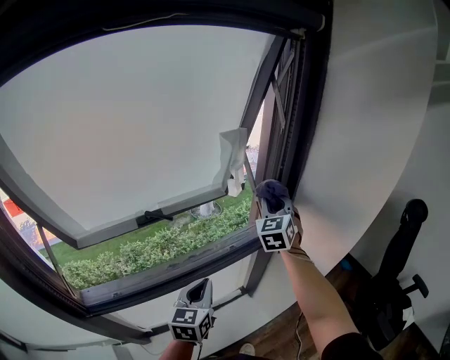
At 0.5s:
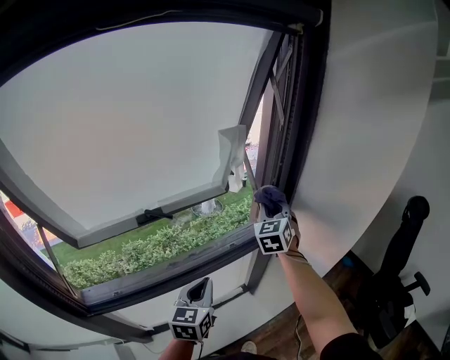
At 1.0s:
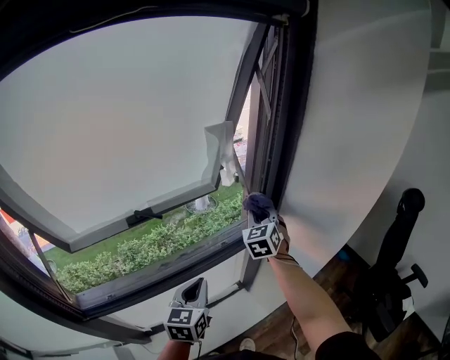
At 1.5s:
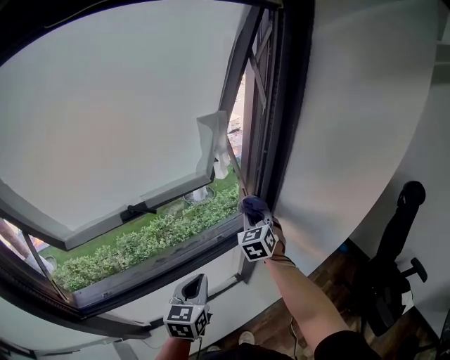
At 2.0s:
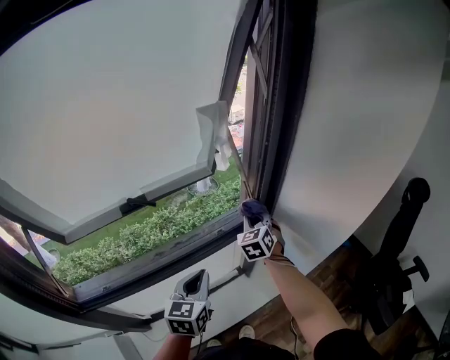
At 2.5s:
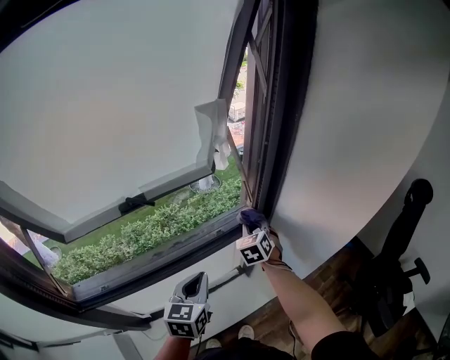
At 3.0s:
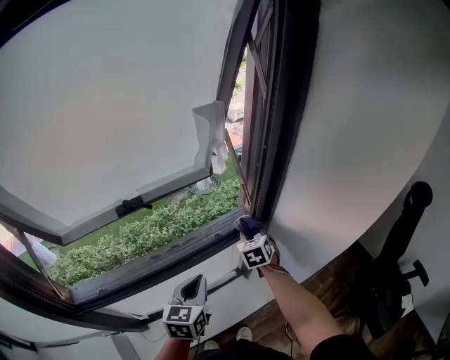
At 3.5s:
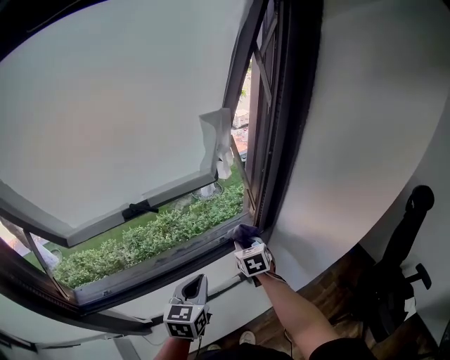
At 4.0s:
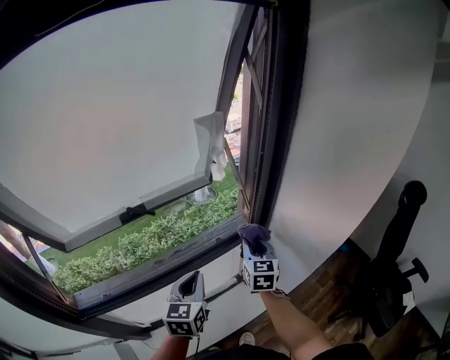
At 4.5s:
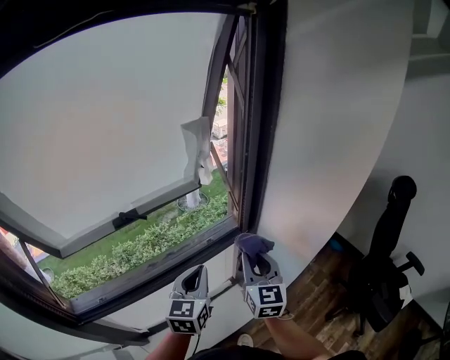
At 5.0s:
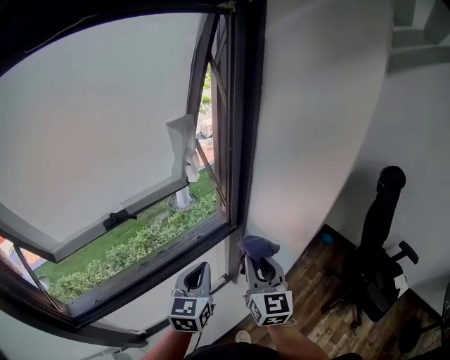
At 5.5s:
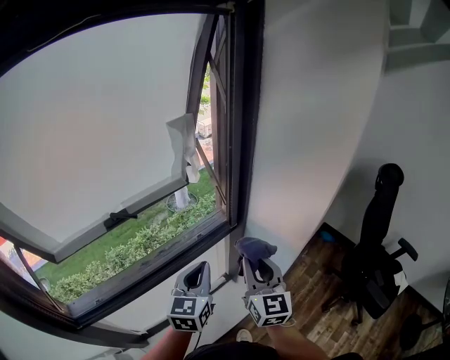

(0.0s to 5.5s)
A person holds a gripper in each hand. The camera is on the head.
0.0s - 2.0s: The right gripper goes about 20 cm downward.
2.0s - 3.5s: The right gripper heads downward, covering roughly 5 cm, and changes its angle by approximately 20 degrees.
3.5s - 5.5s: The right gripper shifts some 25 cm backward, upward and to the right, and tips its fingers upward by approximately 40 degrees, while the left gripper heads to the right and upward, covering roughly 10 cm.

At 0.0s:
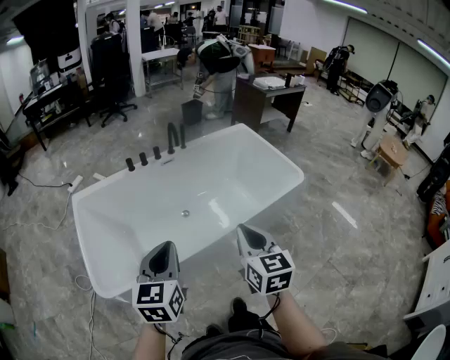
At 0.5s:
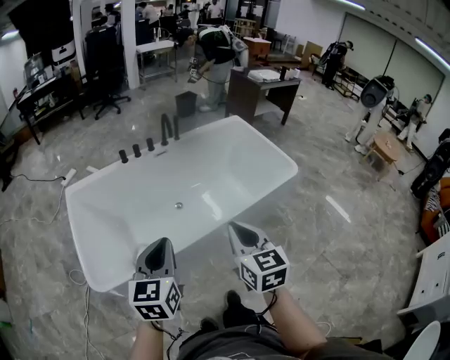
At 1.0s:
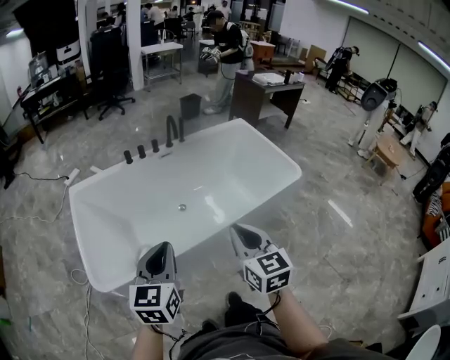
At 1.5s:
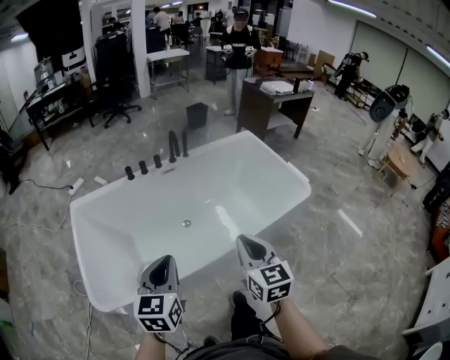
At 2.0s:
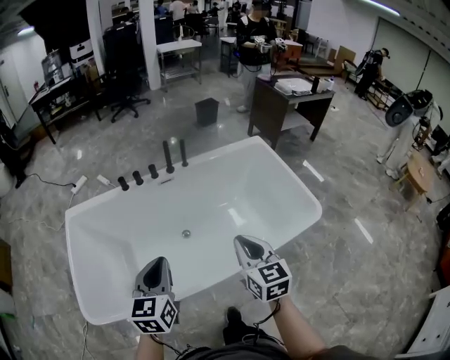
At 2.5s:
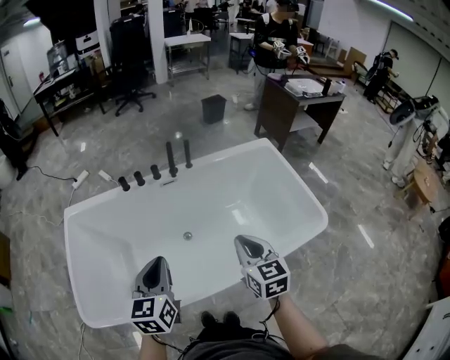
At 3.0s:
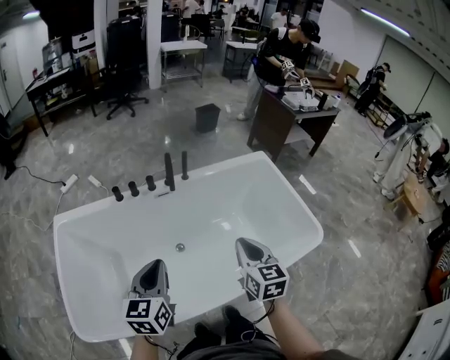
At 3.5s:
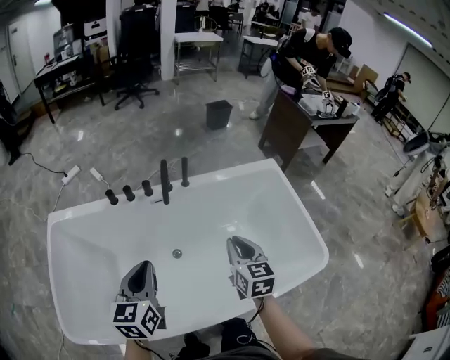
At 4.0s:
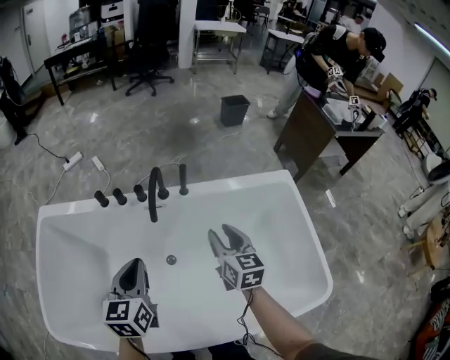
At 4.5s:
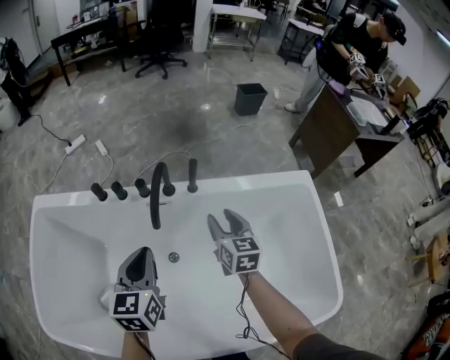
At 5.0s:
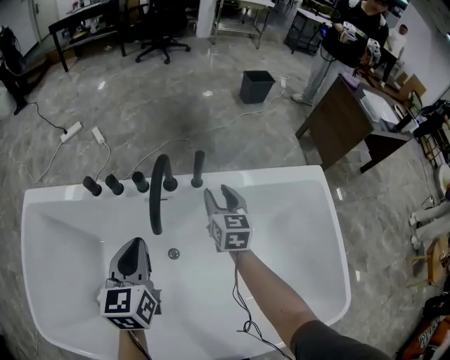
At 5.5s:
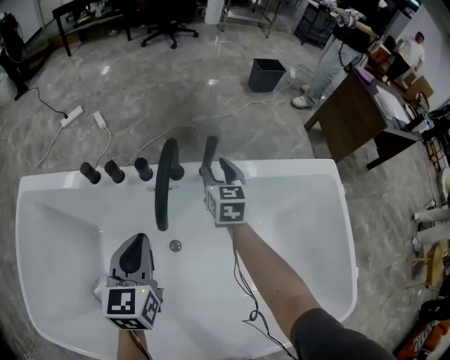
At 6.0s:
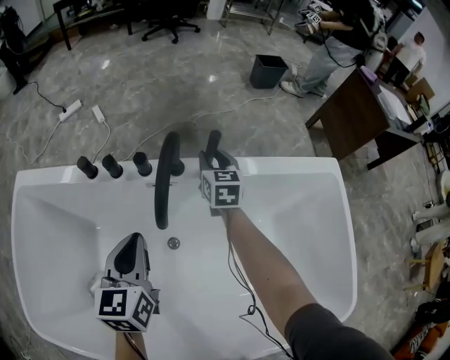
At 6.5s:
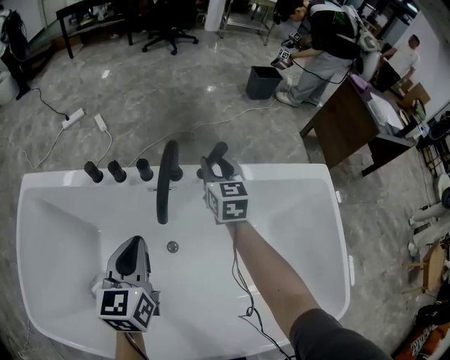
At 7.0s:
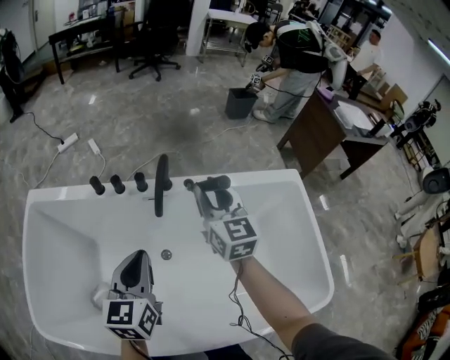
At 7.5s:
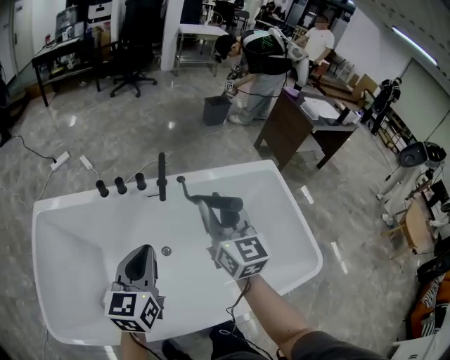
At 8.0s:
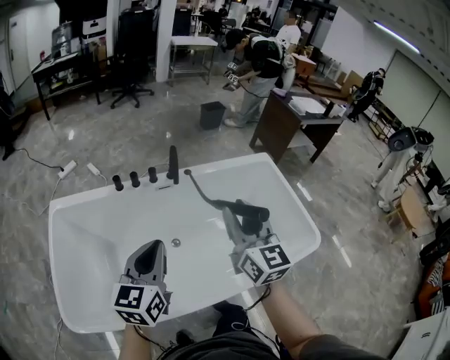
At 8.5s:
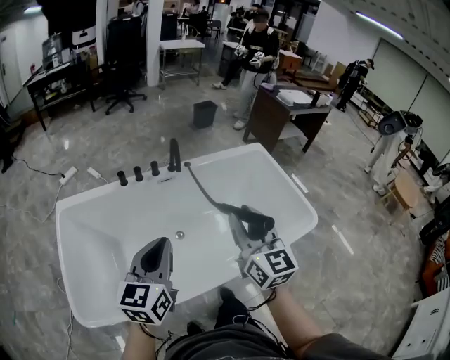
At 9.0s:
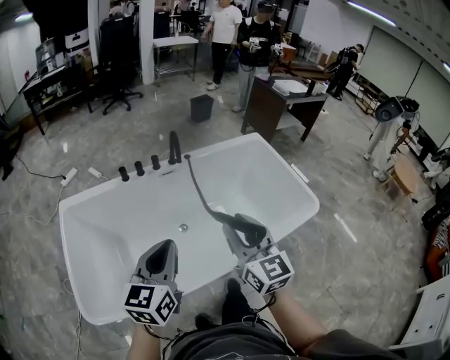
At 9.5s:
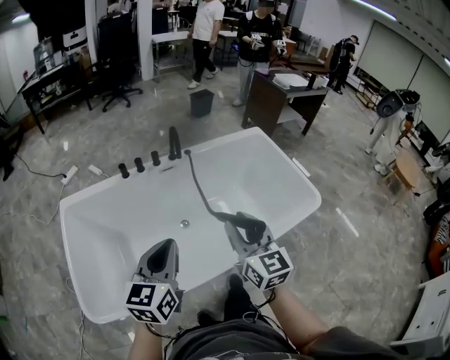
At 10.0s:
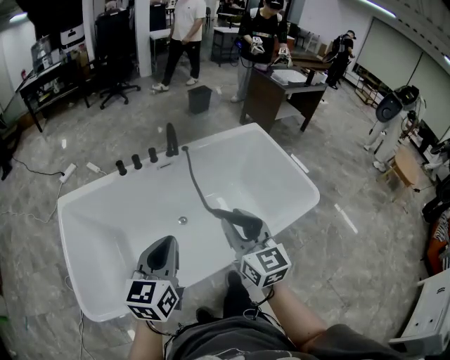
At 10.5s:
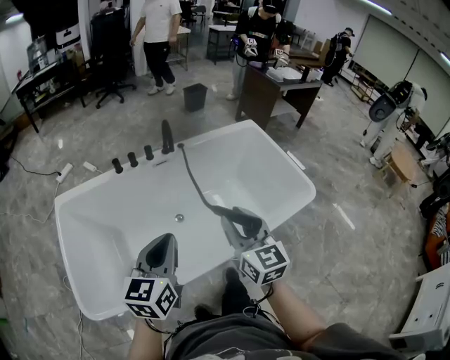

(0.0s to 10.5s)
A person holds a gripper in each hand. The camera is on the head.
0.0s - 2.0s: The grippers both shift forward by approximately 20 cm.
2.0s - 4.0s: Both grippers travel together forward, some 35 cm. The right gripper opens.
4.0s - 6.5s: The right gripper travels forward and downward by roughly 25 cm. The left gripper goes about 15 cm downward and forward.
6.5s - 8.5s: The right gripper is displaced backward and upward by roughly 60 cm, and rotates approximately 30 degrees; the left gripper travels backward and upward by some 40 cm, and turns by some 30 degrees.
8.5s - 10.5s: The left gripper ends up some 5 cm from where it was. Meanwhile the right gripper goes about 10 cm downward and backward.

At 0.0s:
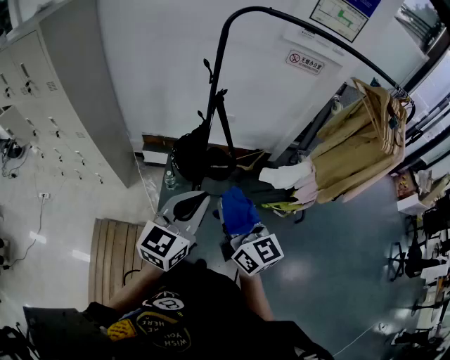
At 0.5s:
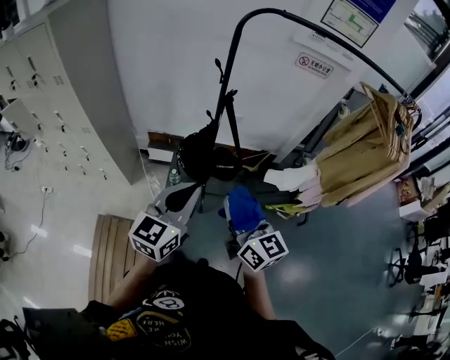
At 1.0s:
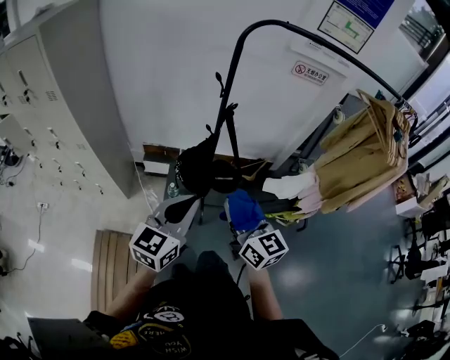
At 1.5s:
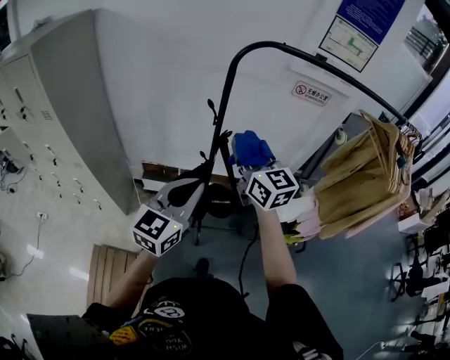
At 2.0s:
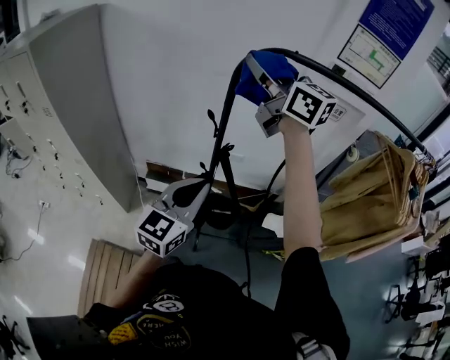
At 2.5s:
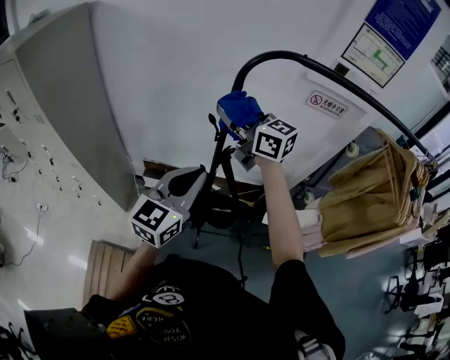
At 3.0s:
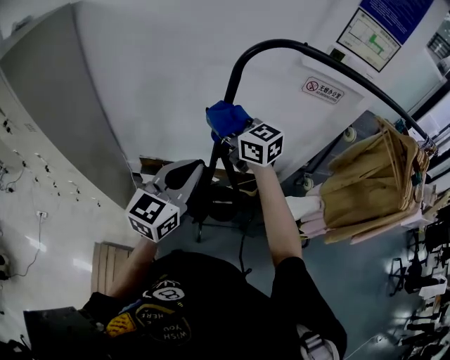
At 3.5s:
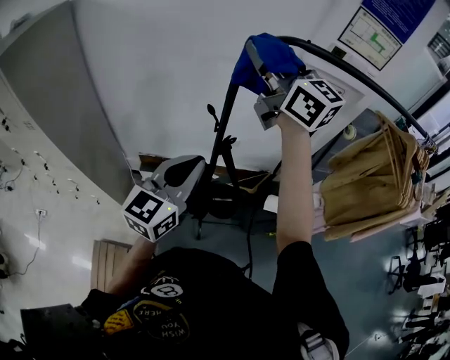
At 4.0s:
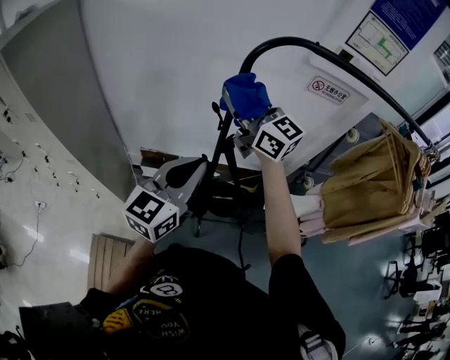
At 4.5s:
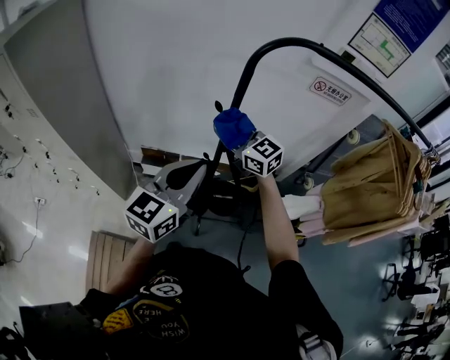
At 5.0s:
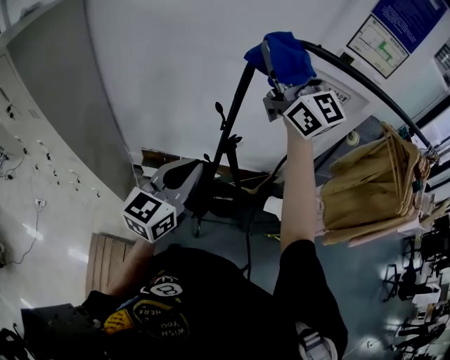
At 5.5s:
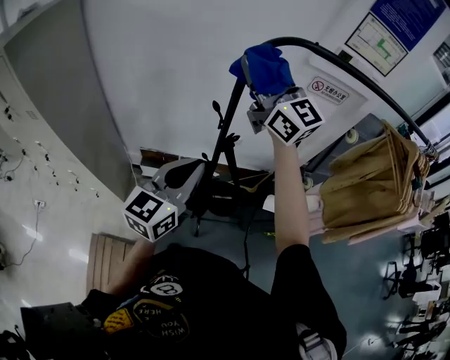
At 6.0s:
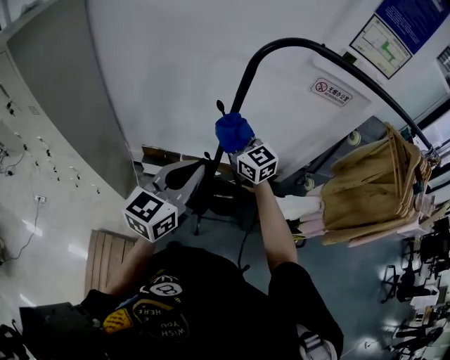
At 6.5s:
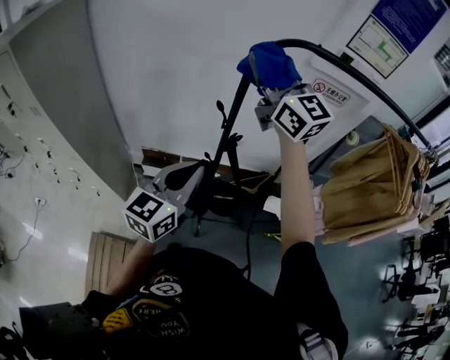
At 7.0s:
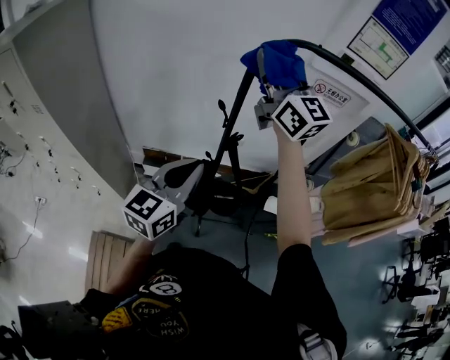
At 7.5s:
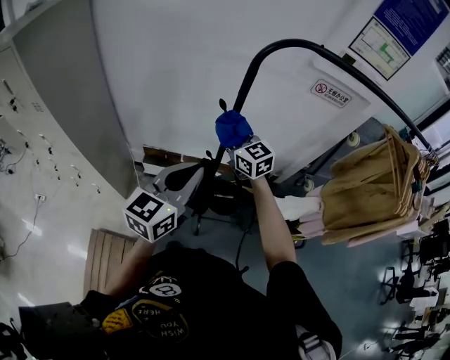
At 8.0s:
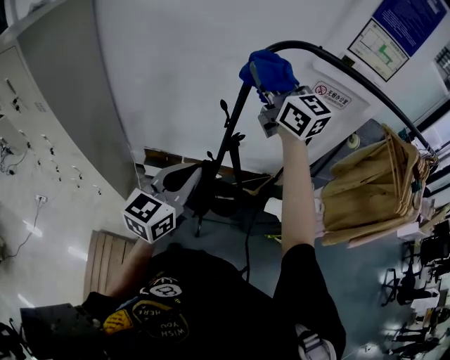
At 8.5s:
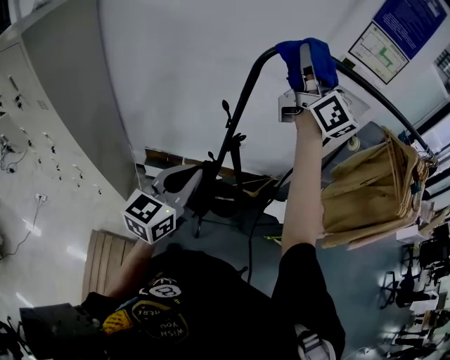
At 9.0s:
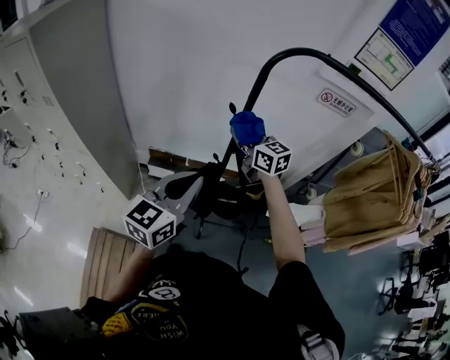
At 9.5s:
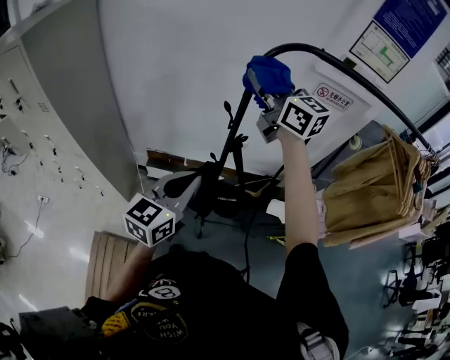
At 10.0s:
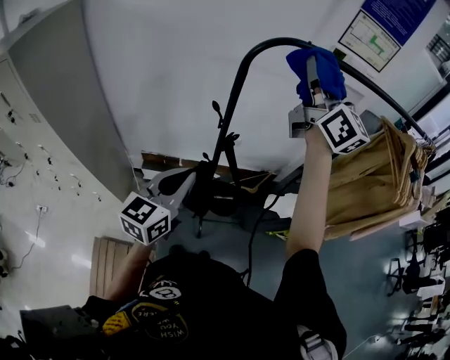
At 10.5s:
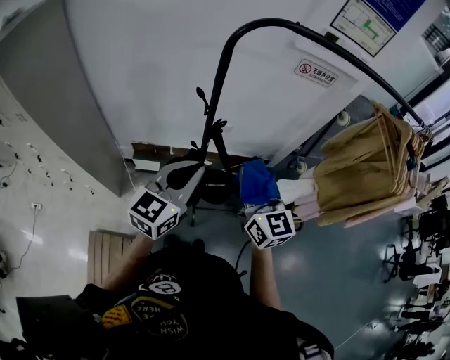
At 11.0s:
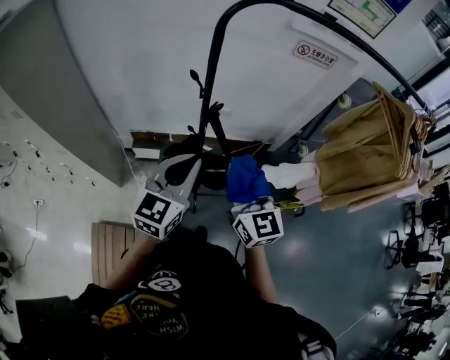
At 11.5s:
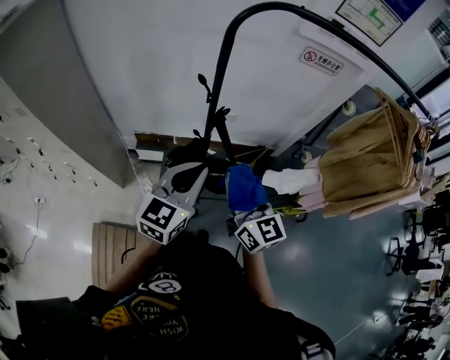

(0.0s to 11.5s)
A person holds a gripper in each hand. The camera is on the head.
0.0s - 2.0s: The right gripper heads forward and upward, covering approximately 50 cm, and turns by some 20 degrees. The left gripper is displaced forward by some 25 cm.
2.0s - 4.0s: The left gripper is displaced forward by roughly 5 cm. The right gripper moves up and down over about 20 cm, changing direction 2 times.
4.0s - 6.0s: The right gripper moves up and down over about 30 cm, changing direction 2 times.
6.0s - 7.5s: The right gripper moves approximately 30 cm upward and comes back.
7.5s - 9.5s: The right gripper moves up and down over about 35 cm, changing direction 2 times.
9.5s - 11.5s: The right gripper goes some 30 cm backward and downward, and rotates some 20 degrees. The left gripper heads to the right, covering some 5 cm.
